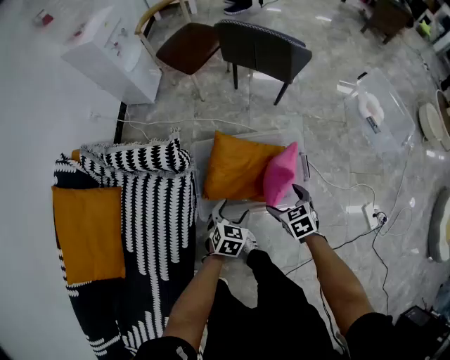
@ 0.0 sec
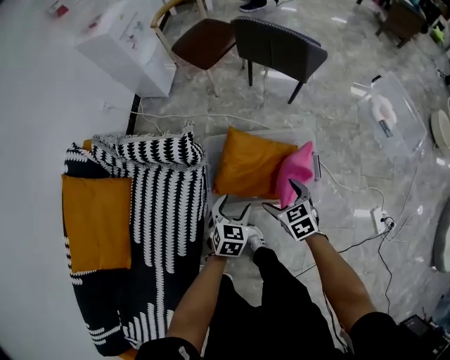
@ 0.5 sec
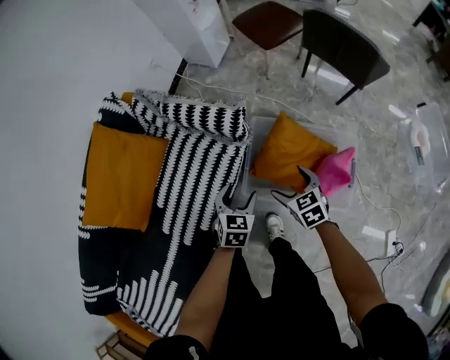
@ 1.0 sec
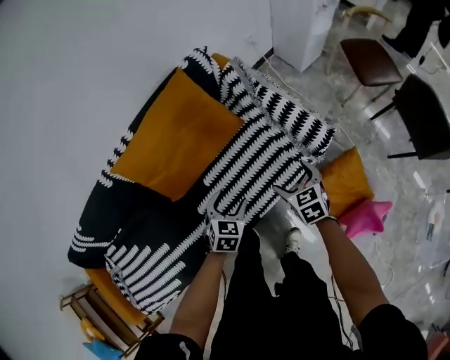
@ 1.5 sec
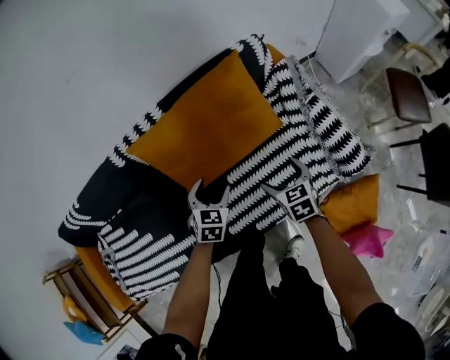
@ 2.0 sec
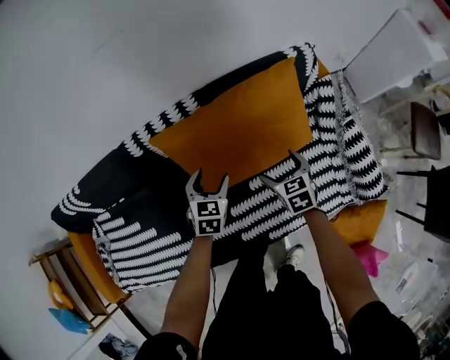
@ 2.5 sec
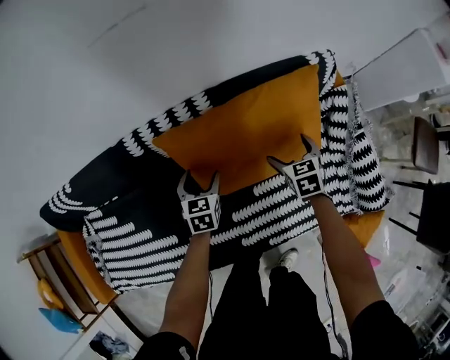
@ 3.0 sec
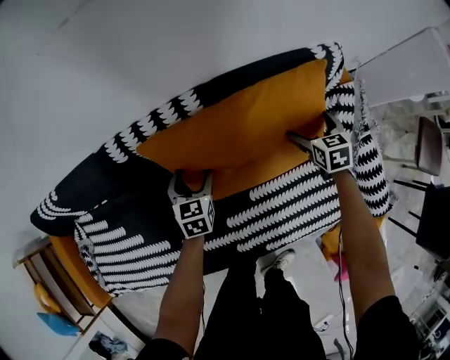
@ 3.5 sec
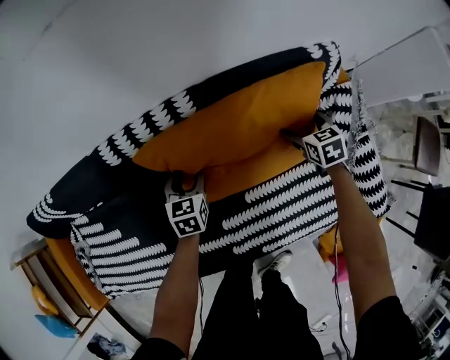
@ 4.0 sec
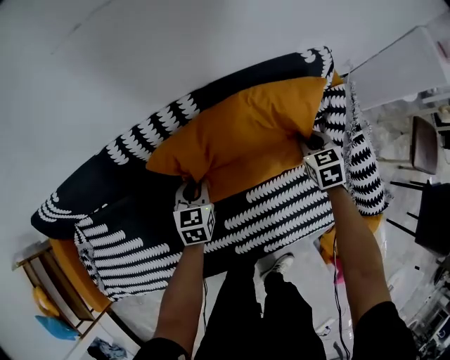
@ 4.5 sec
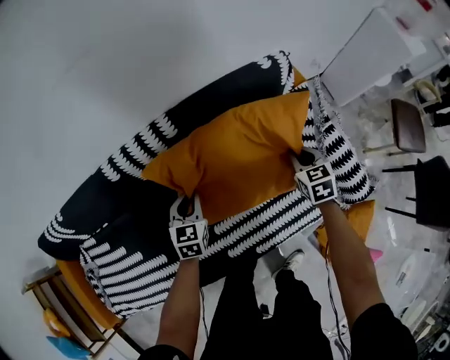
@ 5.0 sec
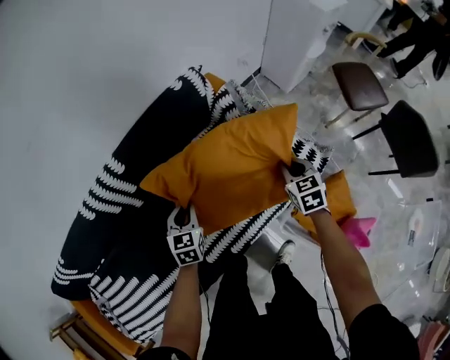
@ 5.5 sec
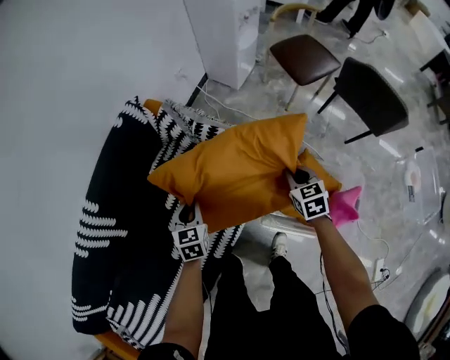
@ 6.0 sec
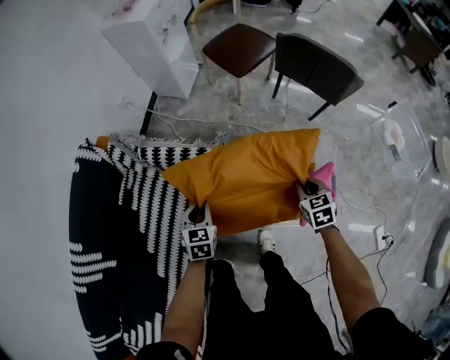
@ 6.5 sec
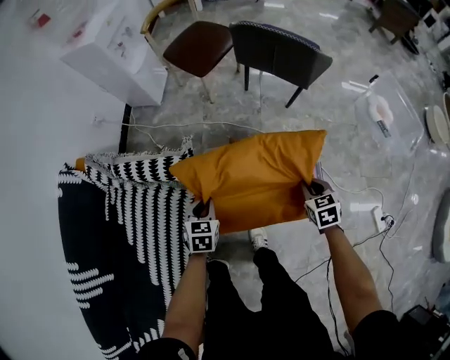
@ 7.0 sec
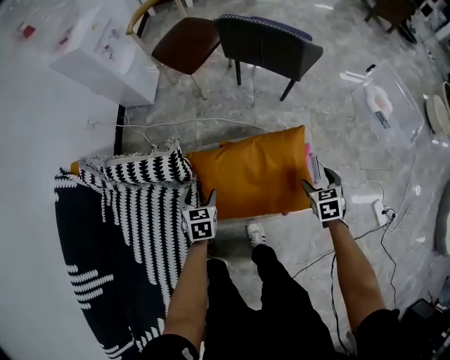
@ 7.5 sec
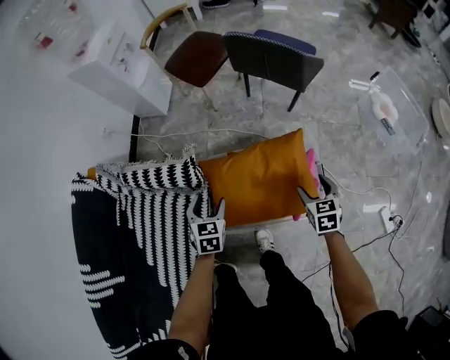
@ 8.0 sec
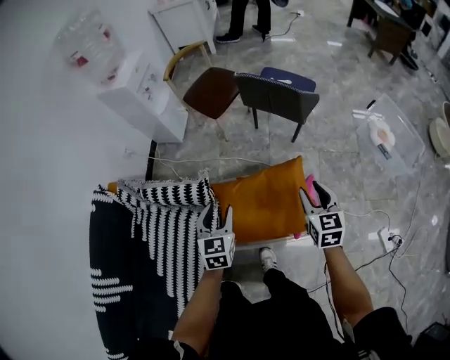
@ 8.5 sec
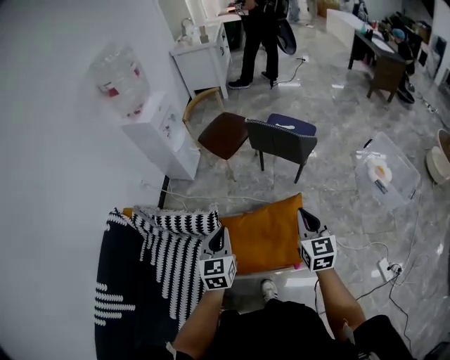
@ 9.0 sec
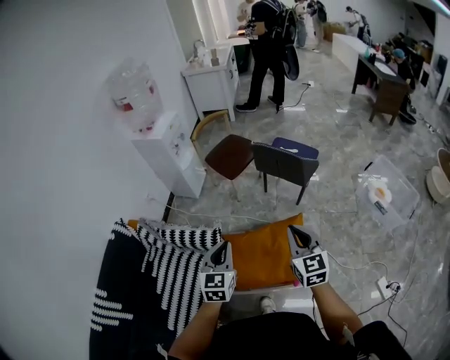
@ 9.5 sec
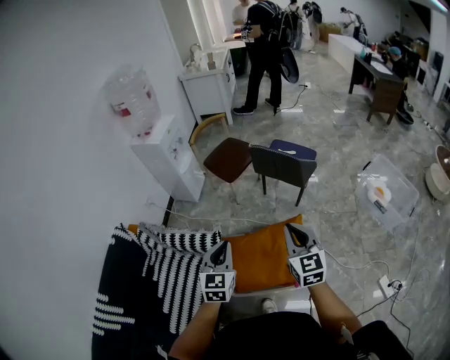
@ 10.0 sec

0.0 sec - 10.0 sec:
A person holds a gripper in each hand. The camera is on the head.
0.0 sec - 2.0 sec: The two grippers travel together, about 70 cm. The right gripper changes its angle by roughly 50 degrees; the left gripper rotates about 70 degrees.
2.0 sec - 4.0 sec: The right gripper is displaced forward by about 30 cm, while the left gripper heads forward, to the left and downward, covering some 25 cm, and turns by approximately 30 degrees.
4.0 sec - 6.0 sec: The two grippers travel together, about 50 cm. The left gripper turns by approximately 40 degrees, and closes up; the right gripper changes its angle by about 50 degrees, and closes.
6.0 sec - 8.0 sec: The two grippers travel together, some 40 cm. The left gripper swivels roughly 30 degrees, and opens up; the right gripper rotates some 30 degrees, and opens up.
8.0 sec - 10.0 sec: The two grippers go approximately 35 cm upward. The right gripper points its fingers some 40 degrees further upward, and closes. The left gripper swivels about 30 degrees, and closes its fingers.

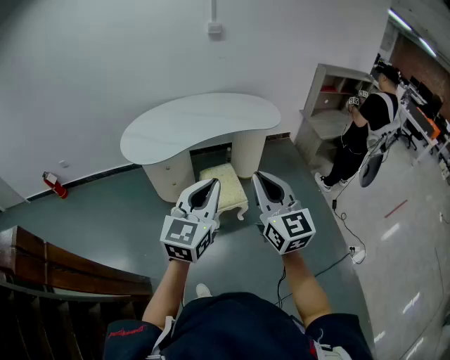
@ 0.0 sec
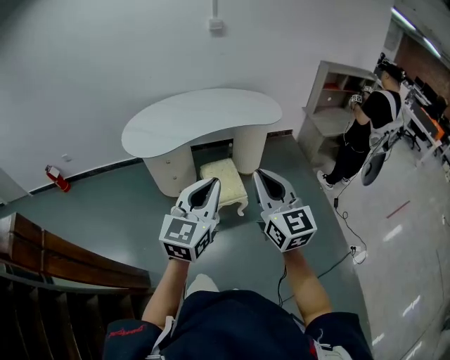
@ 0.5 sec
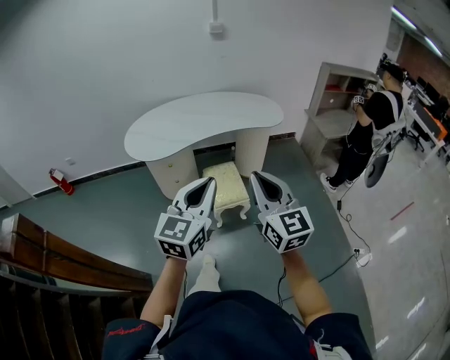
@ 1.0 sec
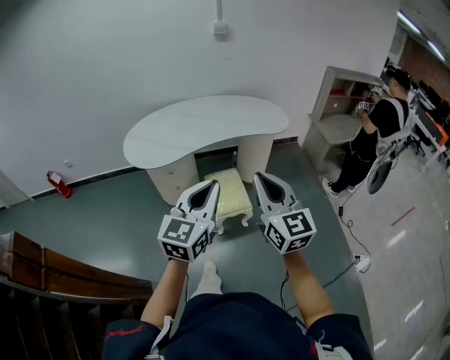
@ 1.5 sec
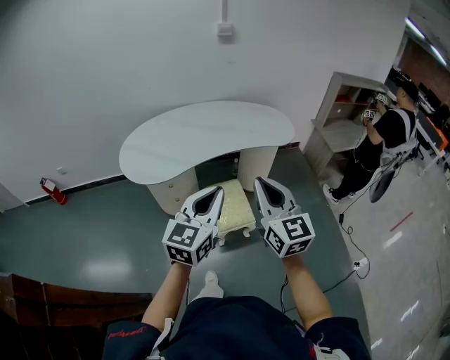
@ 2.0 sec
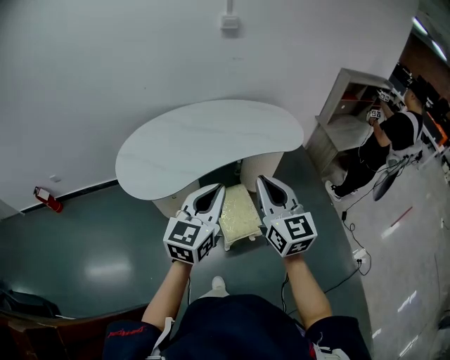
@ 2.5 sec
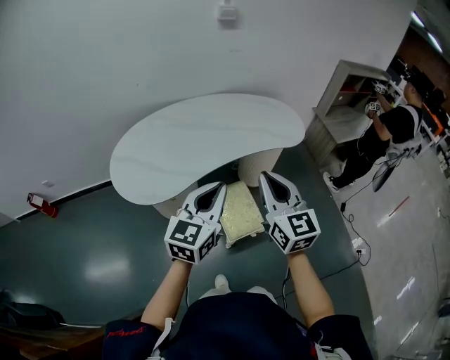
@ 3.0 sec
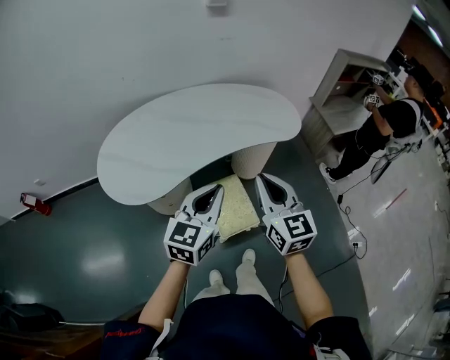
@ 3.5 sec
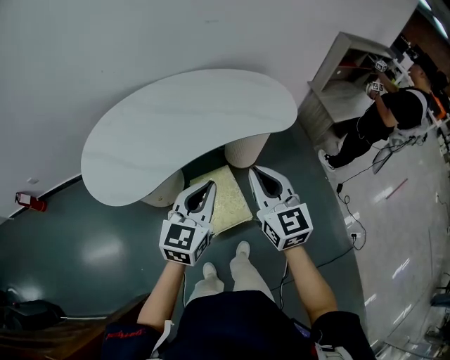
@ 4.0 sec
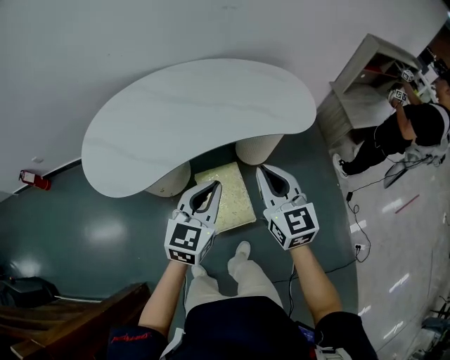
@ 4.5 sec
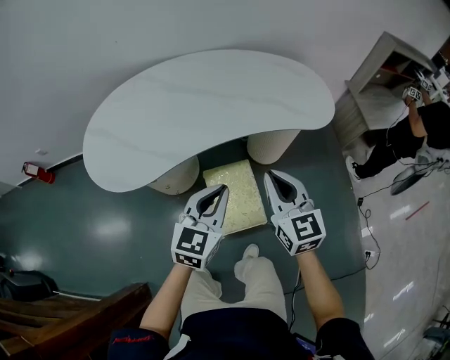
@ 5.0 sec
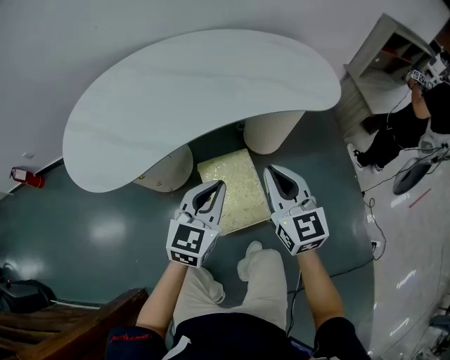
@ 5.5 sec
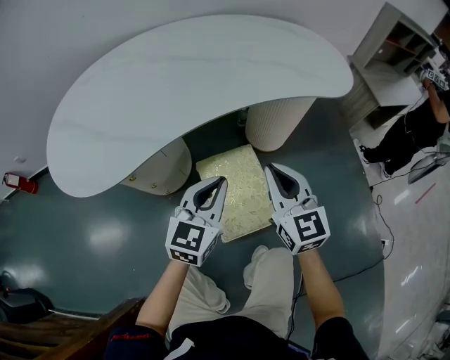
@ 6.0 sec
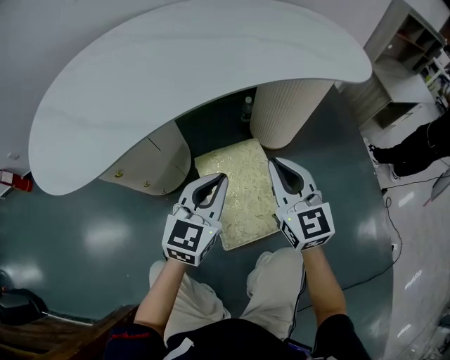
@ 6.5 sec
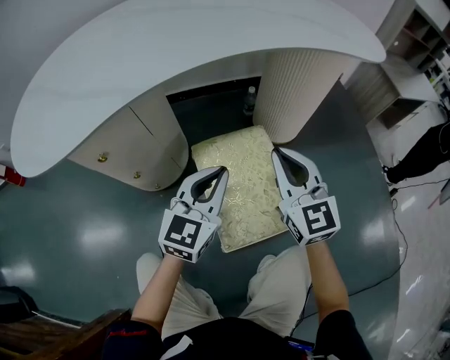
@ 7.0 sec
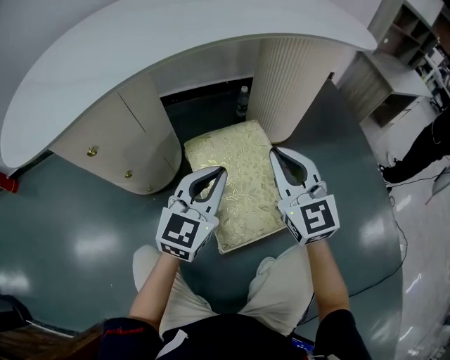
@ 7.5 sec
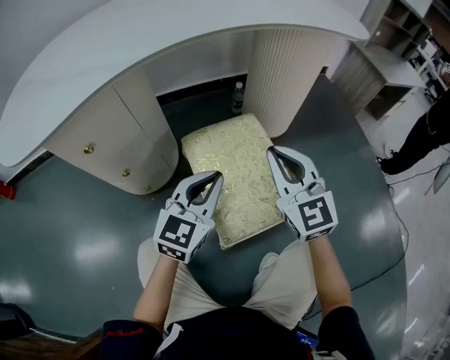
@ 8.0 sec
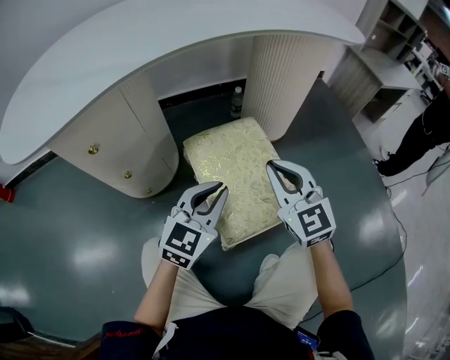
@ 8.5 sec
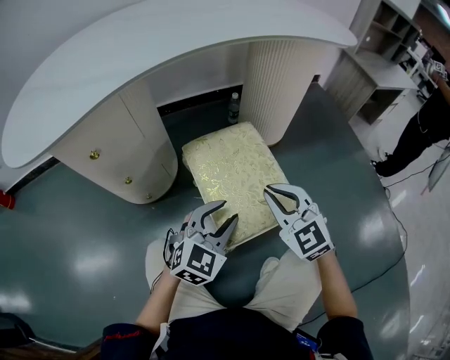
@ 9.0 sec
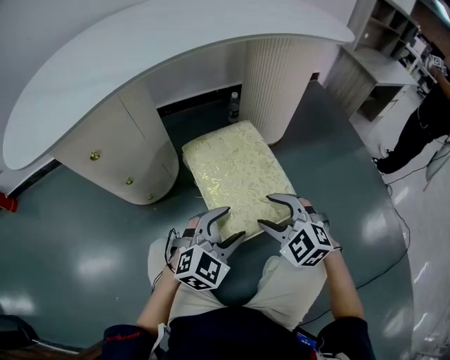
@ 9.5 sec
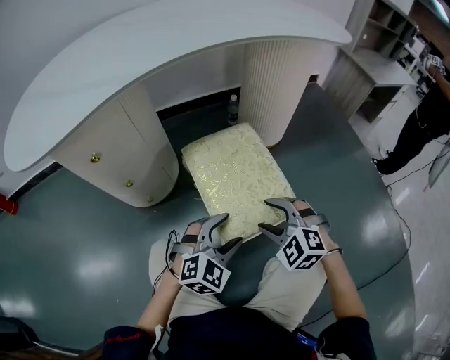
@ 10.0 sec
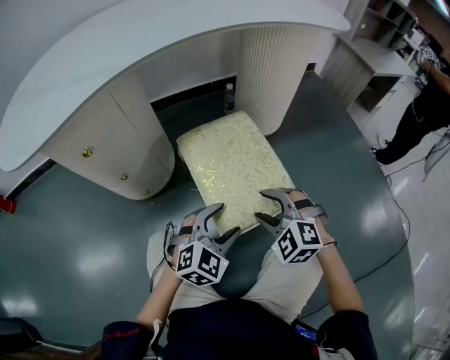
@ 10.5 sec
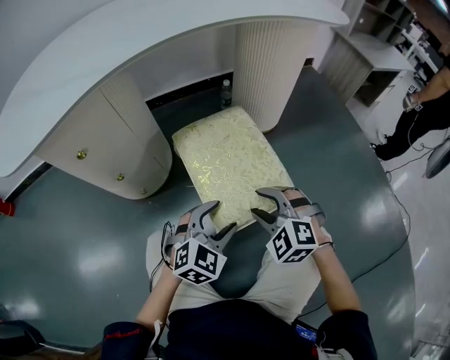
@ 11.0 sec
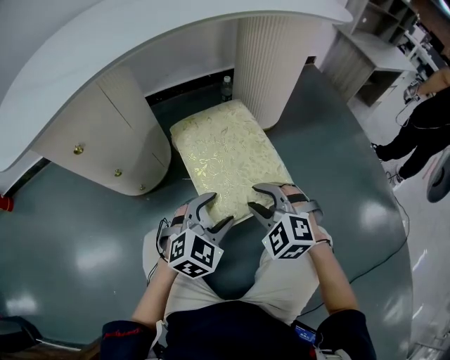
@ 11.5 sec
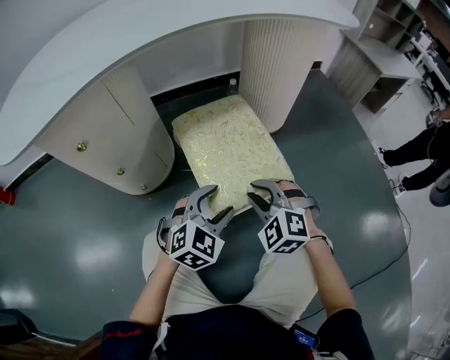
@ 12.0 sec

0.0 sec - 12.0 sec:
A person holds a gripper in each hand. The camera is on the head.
0.0 sec - 2.0 sec: The two grippers go approximately 15 cm forward.
2.0 sec - 4.0 sec: Both grippers move forward and downward, approximately 25 cm.
4.0 sec - 6.0 sec: The two grippers go approximately 30 cm downward.
6.0 sec - 8.0 sec: The two grippers go roughly 20 cm downward.
8.0 sec - 10.0 sec: The left gripper is displaced backward and downward by some 15 cm, changes its angle by roughly 40 degrees, and opens; the right gripper moves downward and backward, roughly 20 cm, tilts its fingers about 40 degrees downward, and opens up.
10.0 sec - 12.0 sec: The right gripper shifts by approximately 5 cm, and closes; the left gripper moves forward, about 5 cm.

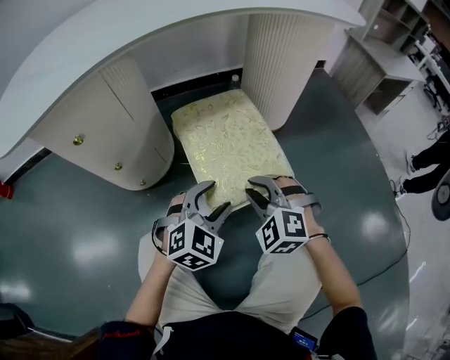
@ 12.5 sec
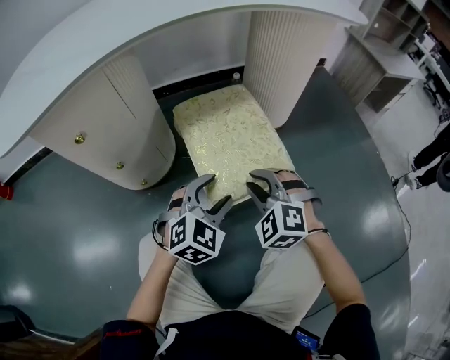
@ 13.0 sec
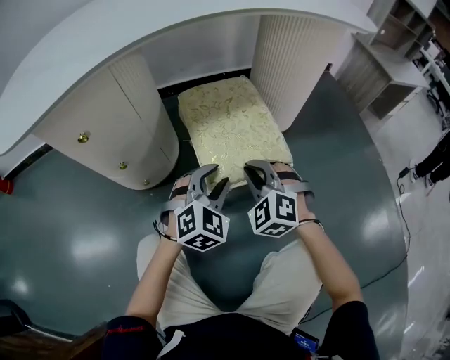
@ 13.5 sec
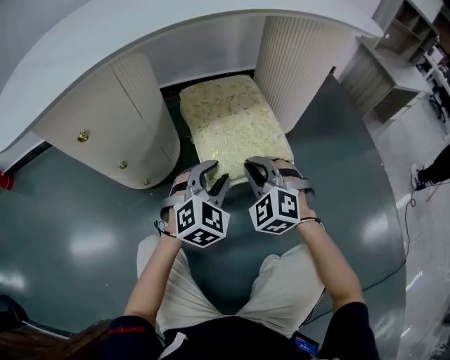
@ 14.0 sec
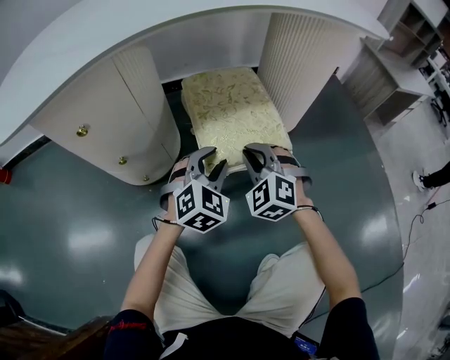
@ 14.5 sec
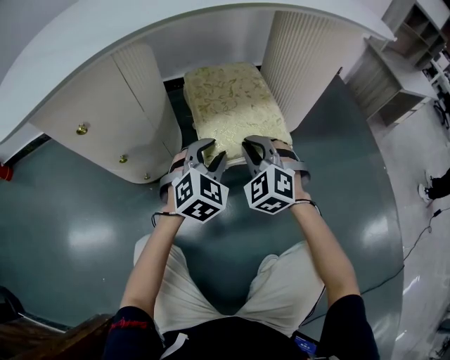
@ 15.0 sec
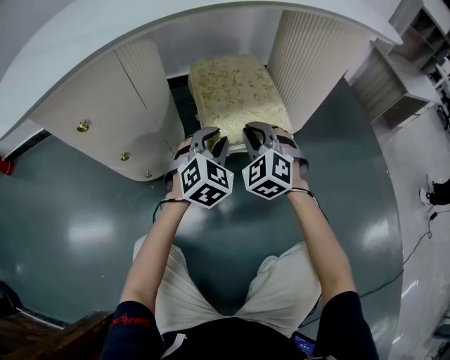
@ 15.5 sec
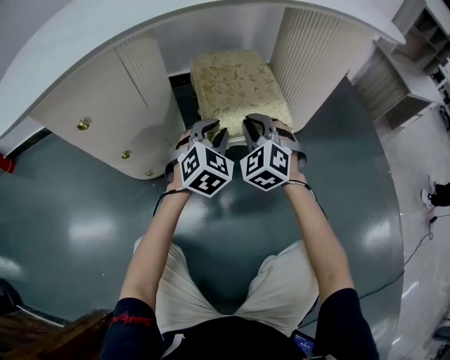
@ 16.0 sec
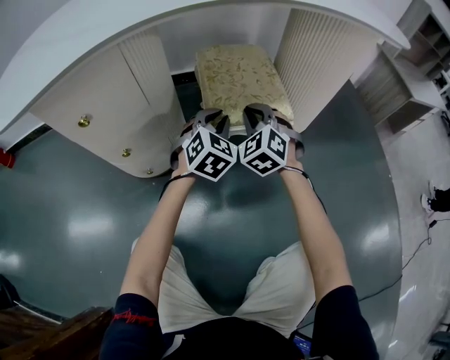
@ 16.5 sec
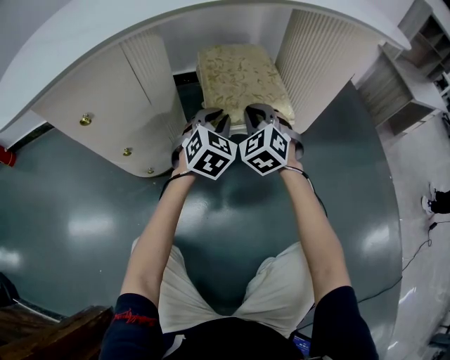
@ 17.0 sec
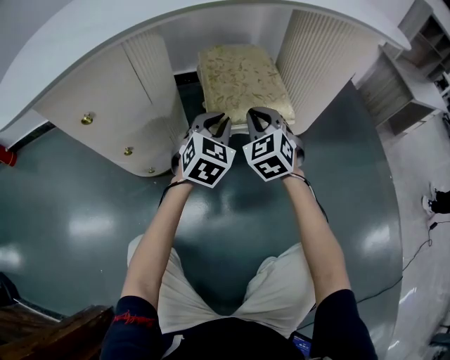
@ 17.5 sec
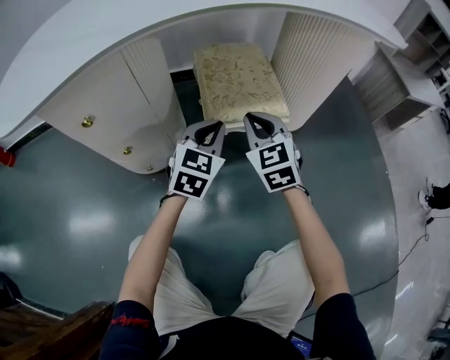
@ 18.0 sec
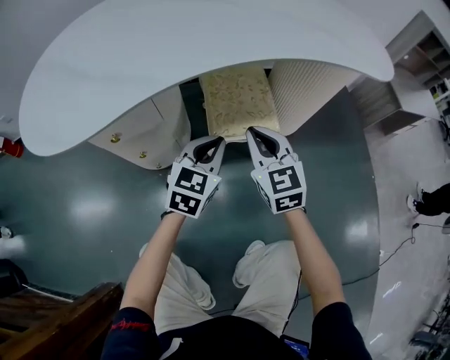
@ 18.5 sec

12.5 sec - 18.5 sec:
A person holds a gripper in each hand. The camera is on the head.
12.5 sec - 14.5 sec: Both grippers move forward, some 10 cm.
14.5 sec - 16.5 sec: Both grippers move forward, roughly 10 cm.
16.5 sec - 18.5 sec: Both grippers travel together upward and backward, some 20 cm. The left gripper turns by some 30 degrees; the right gripper turns by some 40 degrees.
